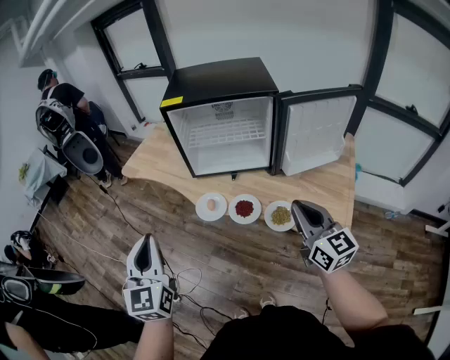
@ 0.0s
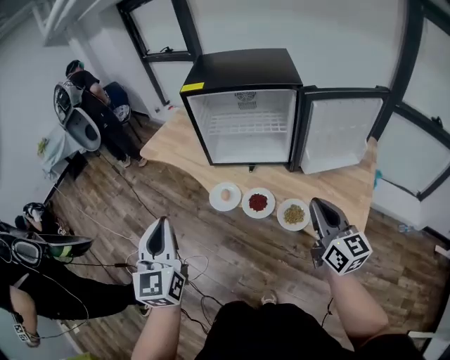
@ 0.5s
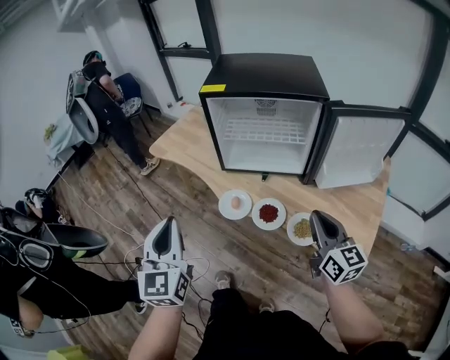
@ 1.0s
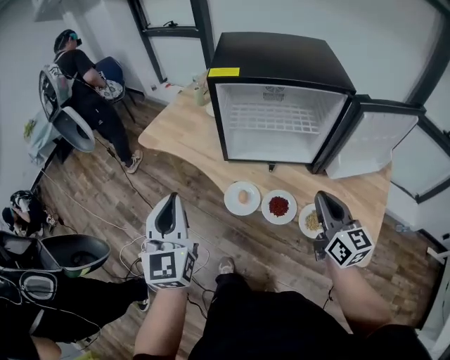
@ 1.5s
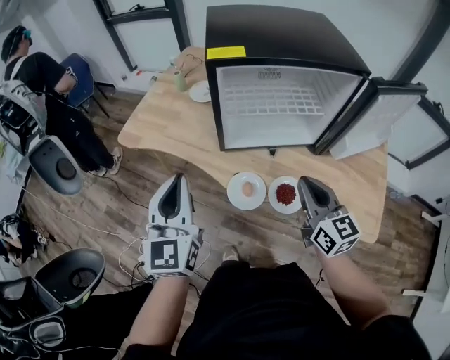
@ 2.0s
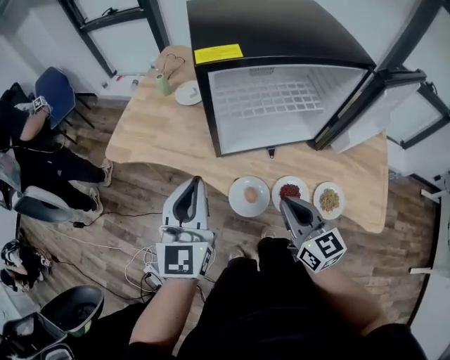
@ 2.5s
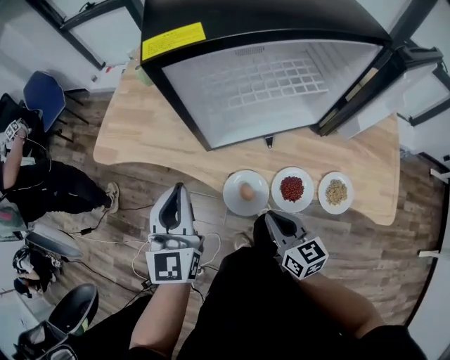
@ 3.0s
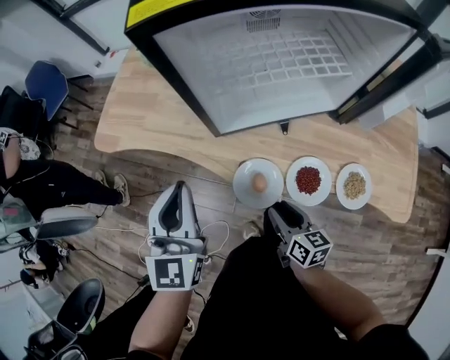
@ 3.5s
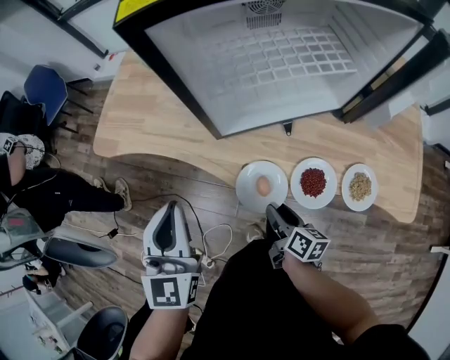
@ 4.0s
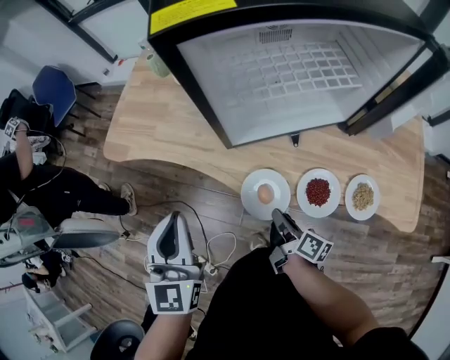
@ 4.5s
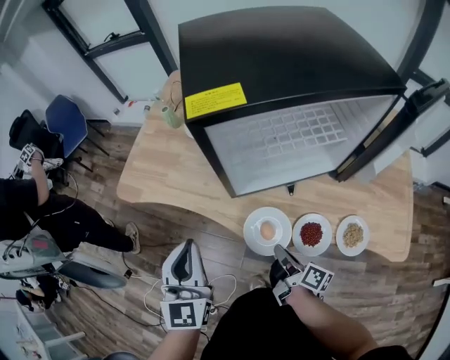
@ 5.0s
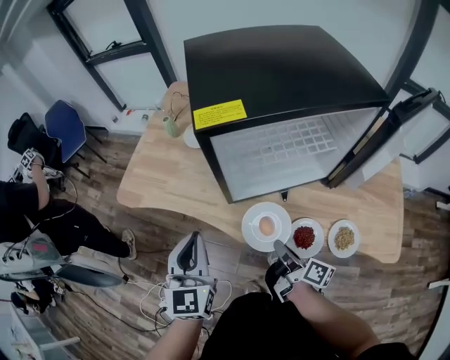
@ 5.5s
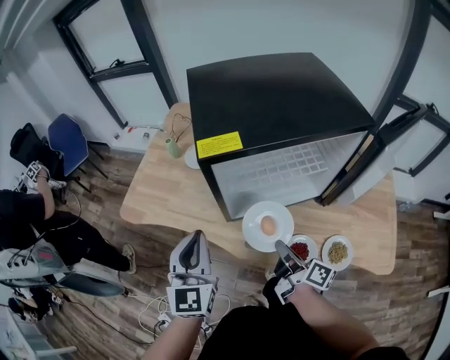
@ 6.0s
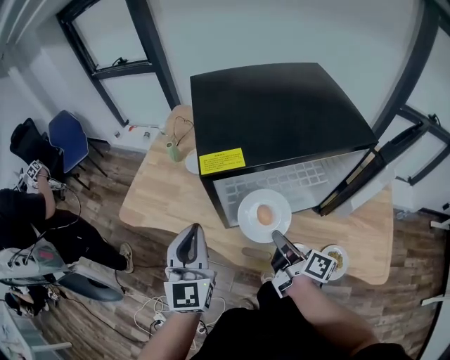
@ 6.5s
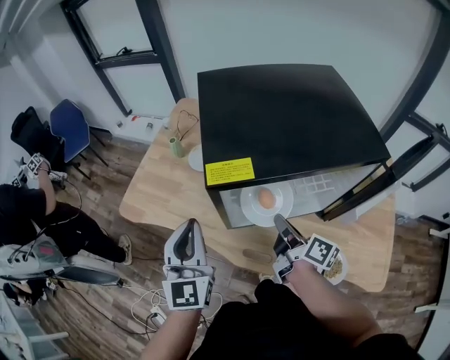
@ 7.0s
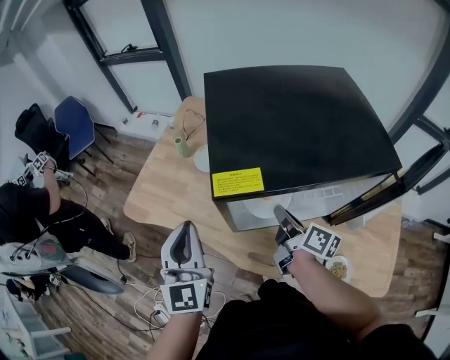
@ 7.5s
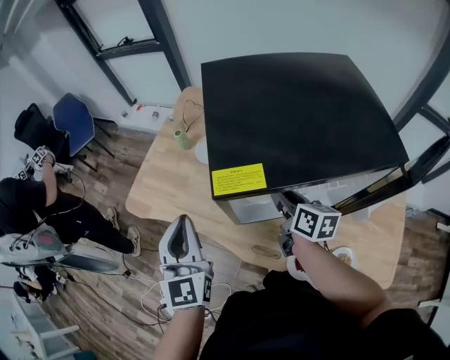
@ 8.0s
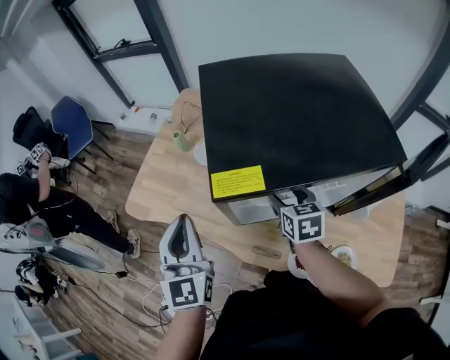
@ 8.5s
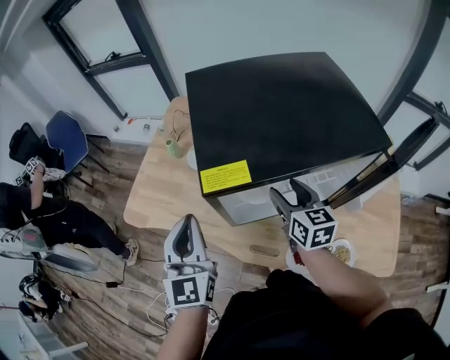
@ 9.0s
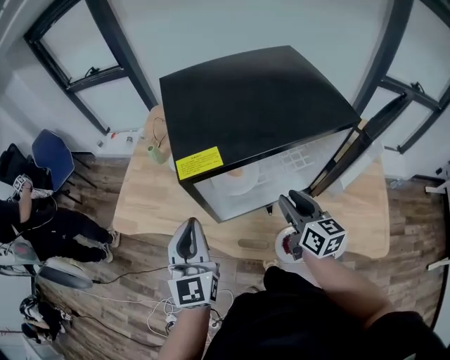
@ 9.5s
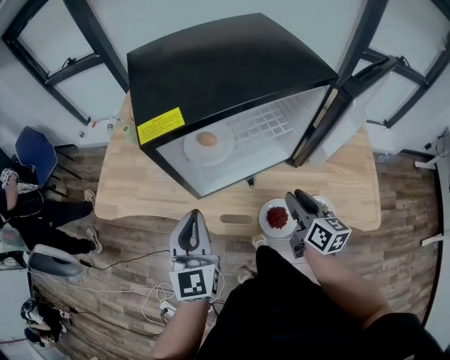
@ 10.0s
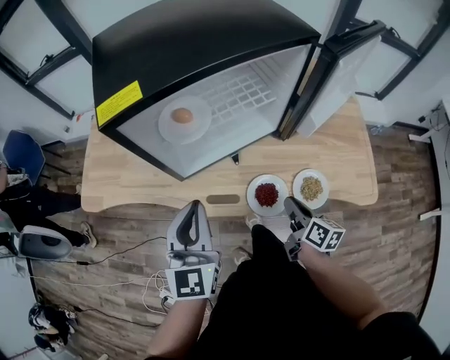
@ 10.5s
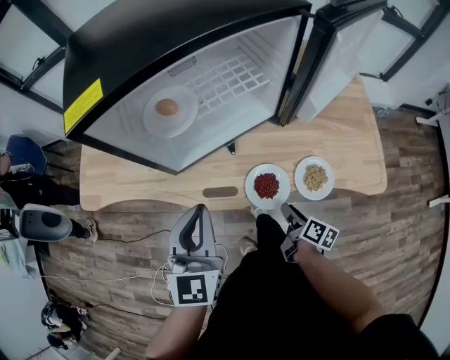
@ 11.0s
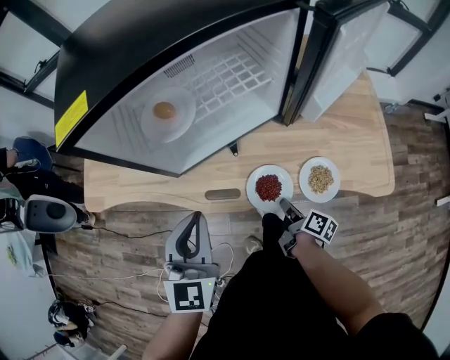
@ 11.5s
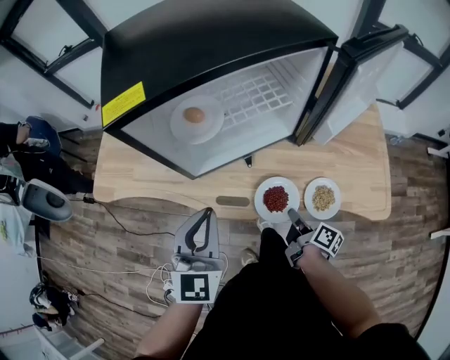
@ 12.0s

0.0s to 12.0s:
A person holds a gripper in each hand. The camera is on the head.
0.0s to 2.0s: The right gripper moves forward, to the left and downward, roughly 25 cm. Meanwhile the left gripper goes some 25 cm forward.
2.0s to 4.0s: The right gripper travels downward by roughly 30 cm, twists about 50 degrees clockwise, seen from behind, and opens, while the left gripper is displaced downward and forward by roughly 15 cm.
4.0s to 6.0s: The left gripper shifts approximately 10 cm upward and forward. Meanwhile the right gripper moves upward and forward, approximately 25 cm, swivels some 30 degrees, and closes.
6.0s to 8.0s: The right gripper travels forward by approximately 20 cm, and changes its angle by about 30 degrees. Meanwhile the left gripper shifts about 10 cm forward.
8.0s to 10.0s: The right gripper shifts some 25 cm backward and to the right, swivels about 20 degrees, and opens, then closes once more, while the left gripper travels to the right, backward and downward by roughly 15 cm, and turns by approximately 20 degrees.
10.0s to 12.0s: The left gripper moves to the right, about 5 cm, while the right gripper moves downward and backward, about 20 cm, rotates around the line of its fingers by approximately 50 degrees, clockwise from behind, and closes.

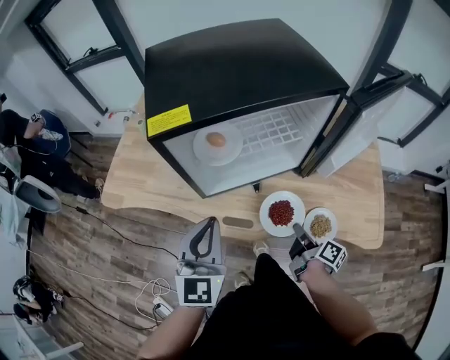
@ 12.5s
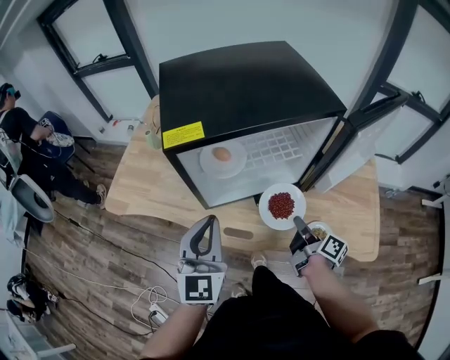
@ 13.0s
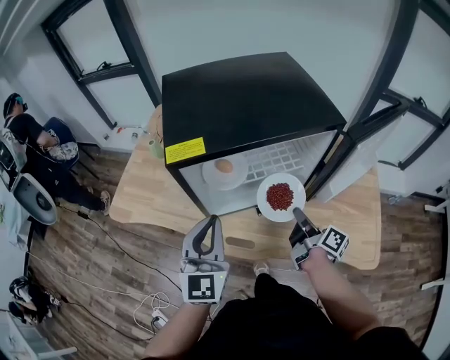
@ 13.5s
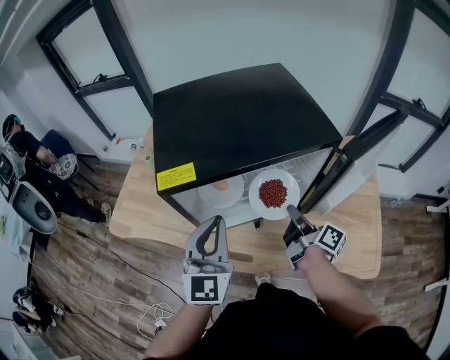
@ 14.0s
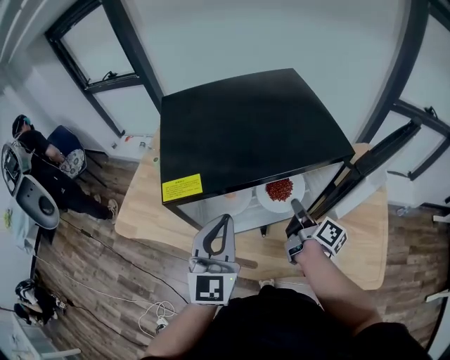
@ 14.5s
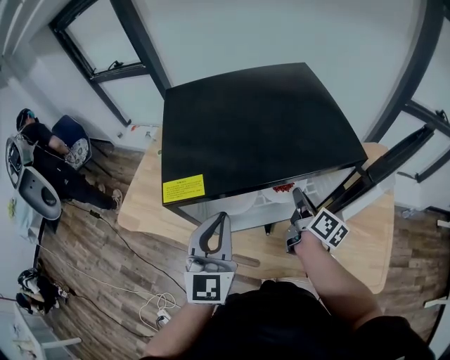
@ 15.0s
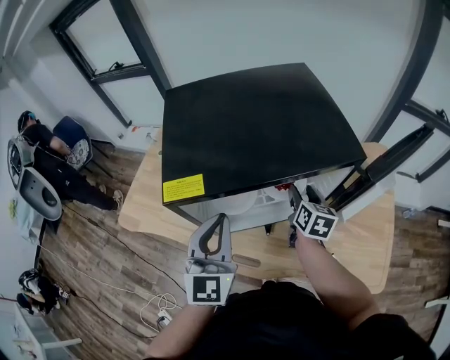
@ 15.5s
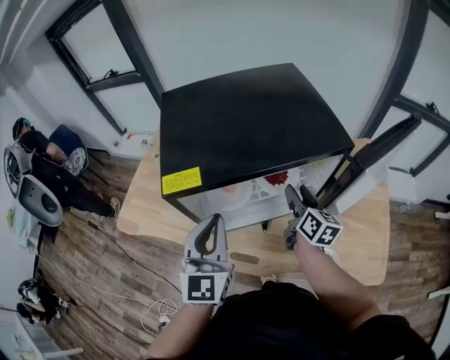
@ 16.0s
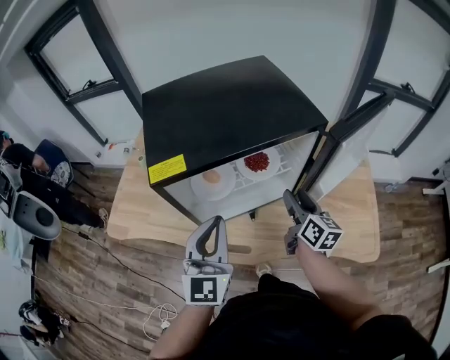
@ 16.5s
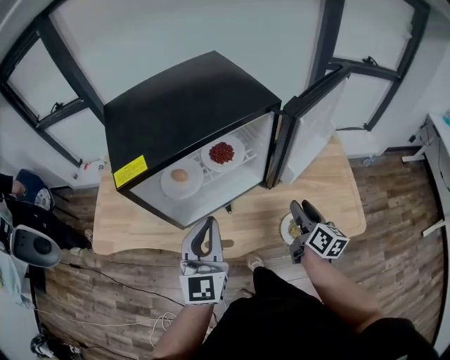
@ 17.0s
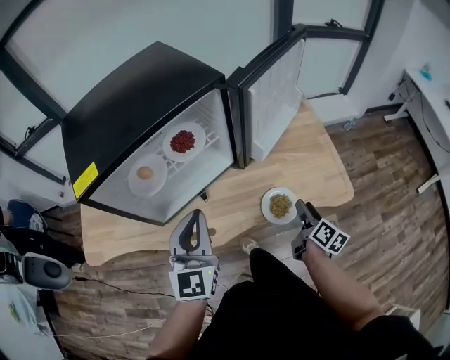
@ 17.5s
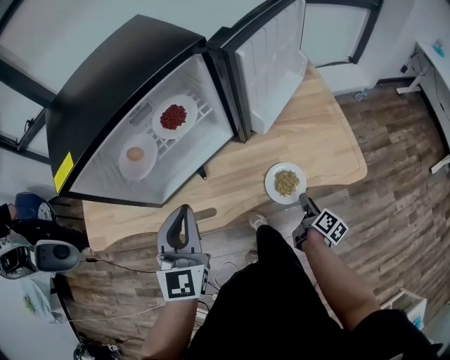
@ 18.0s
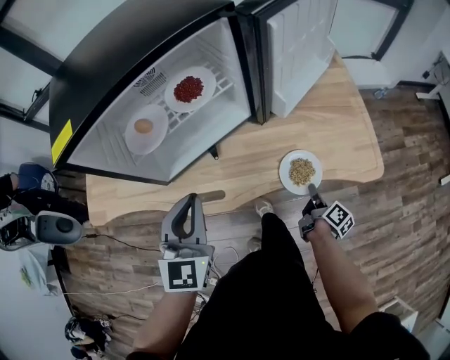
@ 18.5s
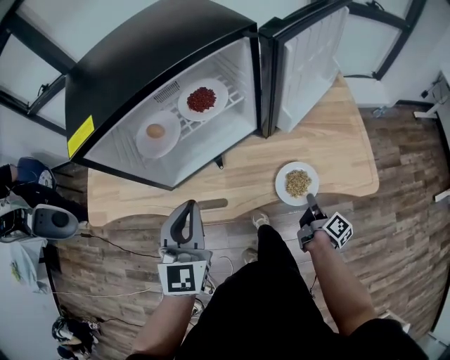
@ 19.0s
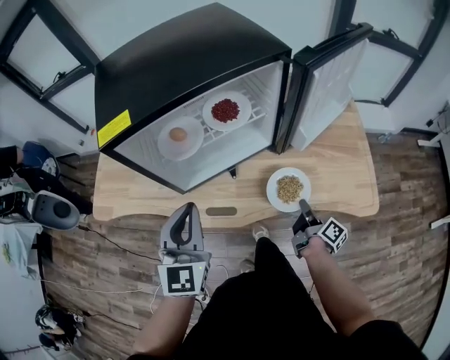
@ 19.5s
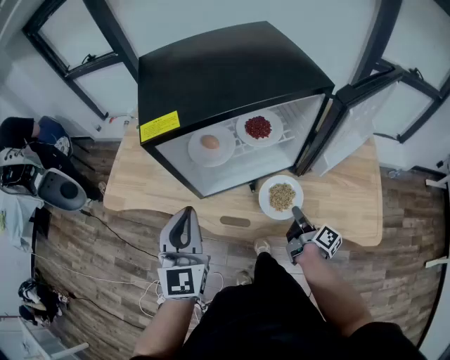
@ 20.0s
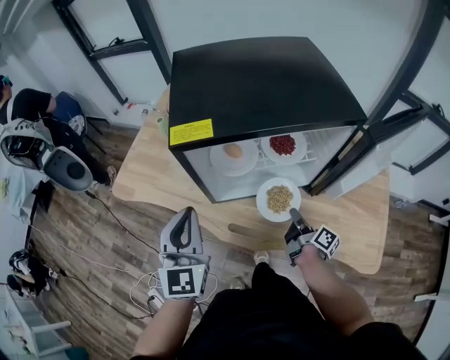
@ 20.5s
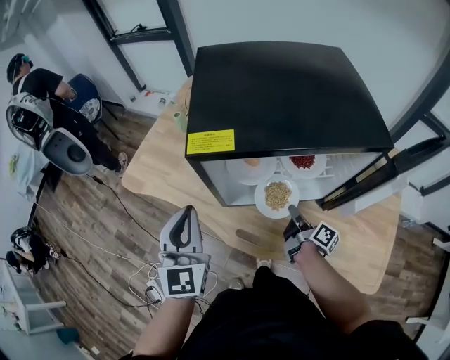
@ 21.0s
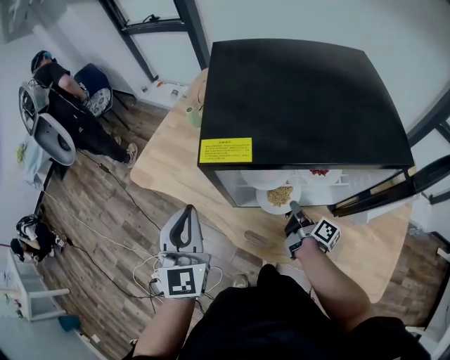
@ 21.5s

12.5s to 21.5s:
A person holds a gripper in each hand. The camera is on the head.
12.5s to 14.5s: The right gripper travels forward and upward by roughly 25 cm. The left gripper is displaced forward and upward by roughly 15 cm.
14.5s to 17.0s: The right gripper is displaced backward and to the right by approximately 20 cm, turns by roughly 30 degrees, and opens. Meanwhile the left gripper is displaced backward by about 5 cm.
17.0s to 19.5s: The right gripper travels downward and backward by some 15 cm, changes its angle by roughly 40 degrees, and closes up. The left gripper shifts by some 5 cm.
19.5s to 21.5s: The right gripper changes place by approximately 30 cm, and swivels roughly 30 degrees. The left gripper ends up approximately 15 cm from where it was, and changes its angle by approximately 30 degrees.

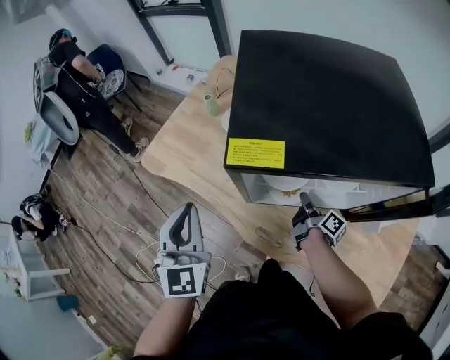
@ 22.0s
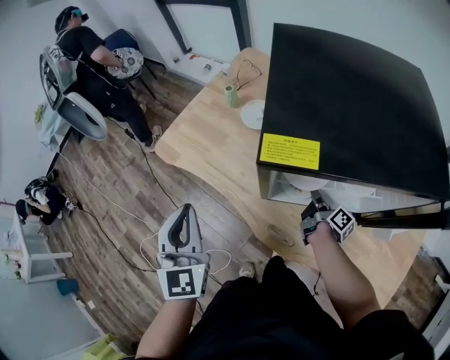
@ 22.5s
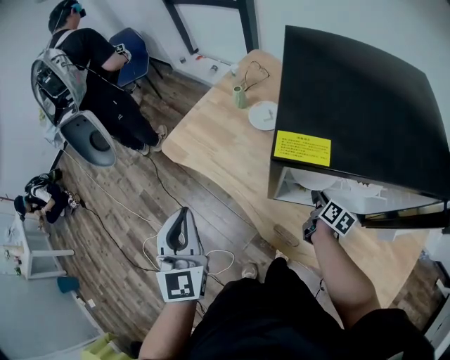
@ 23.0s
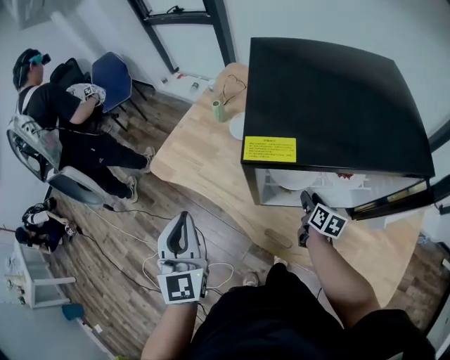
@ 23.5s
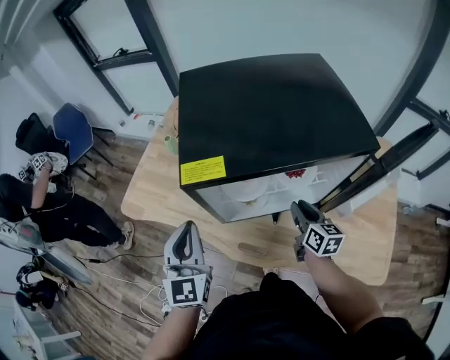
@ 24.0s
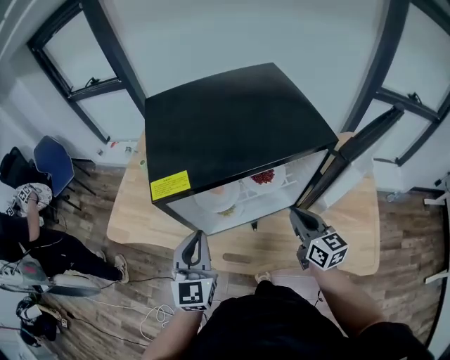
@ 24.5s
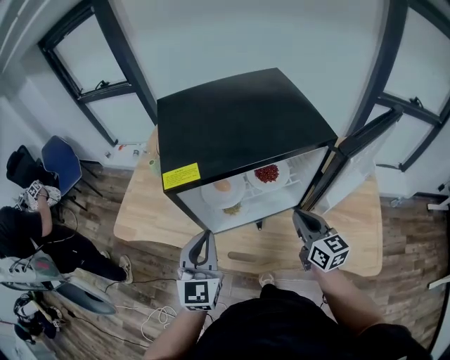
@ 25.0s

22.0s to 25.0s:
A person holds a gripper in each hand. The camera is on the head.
22.0s to 23.5s: The right gripper swivels roughly 40 degrees, and opens.
23.5s to 25.0s: The right gripper is displaced upward, backward and to the right by about 25 cm, swivels about 30 degrees, and closes its fingers. The left gripper heads to the right, covering roughly 20 cm, and changes its angle by about 30 degrees.

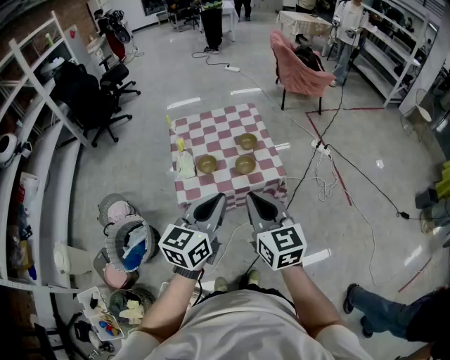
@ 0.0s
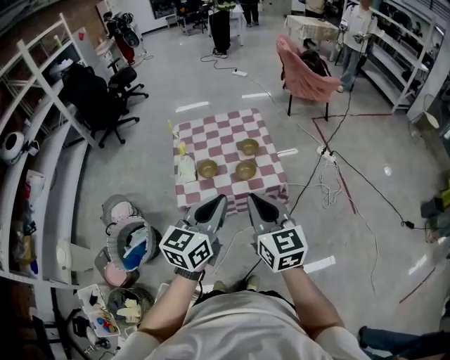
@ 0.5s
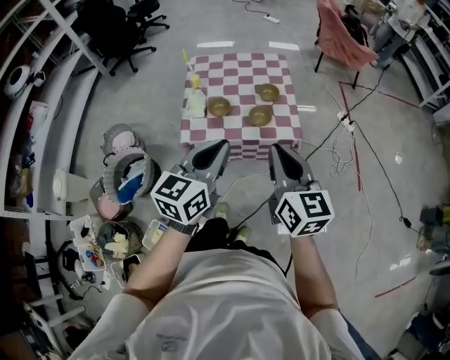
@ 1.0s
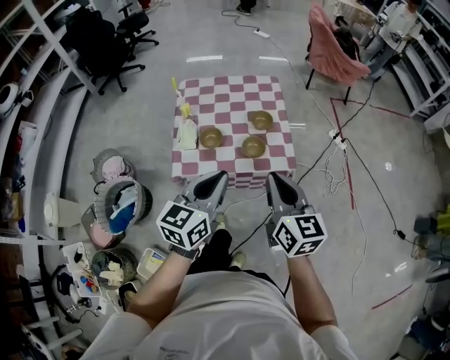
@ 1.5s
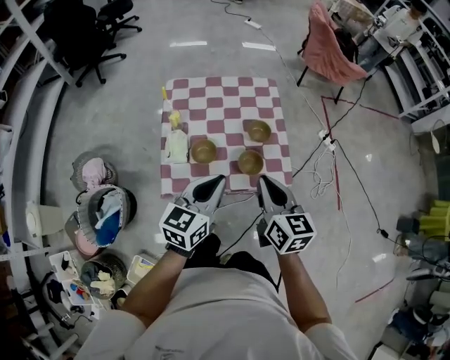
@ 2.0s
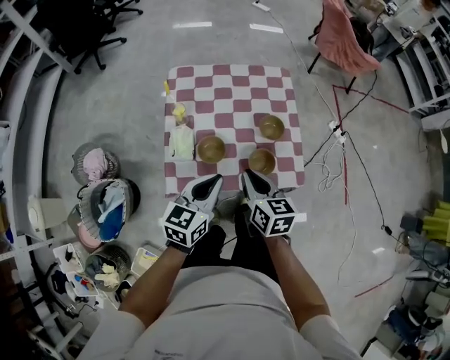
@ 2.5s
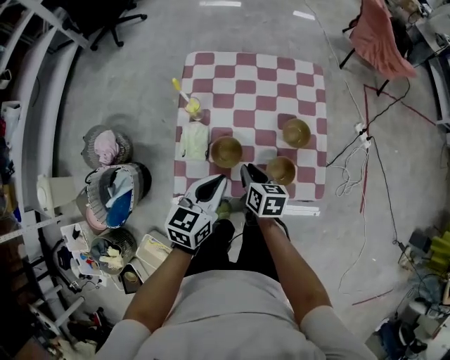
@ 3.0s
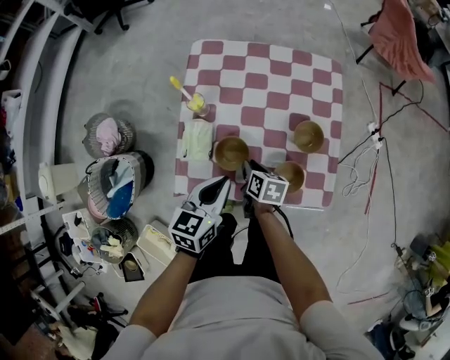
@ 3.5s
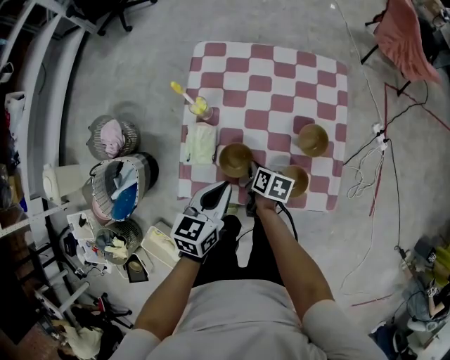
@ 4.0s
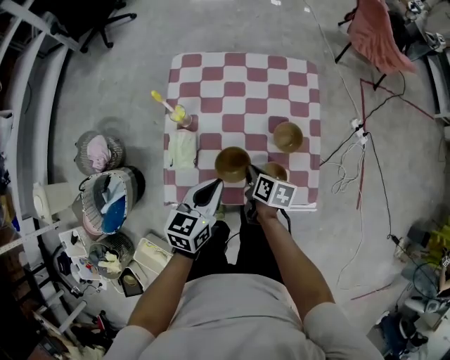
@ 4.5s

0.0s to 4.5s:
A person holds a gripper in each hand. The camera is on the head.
0.0s to 2.0s: Both grippers travel together forward and downward, some 25 cm.
2.0s to 4.5s: The left gripper travels downward and forward by about 20 cm. Meanwhile the right gripper heads downward and forward, covering about 35 cm, and swivels about 40 degrees.
